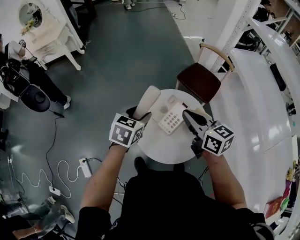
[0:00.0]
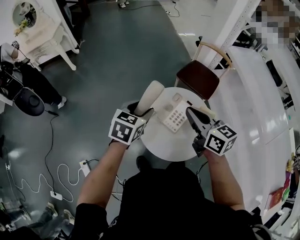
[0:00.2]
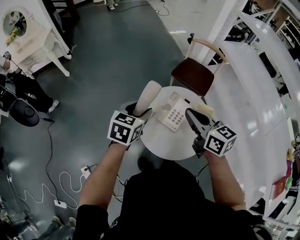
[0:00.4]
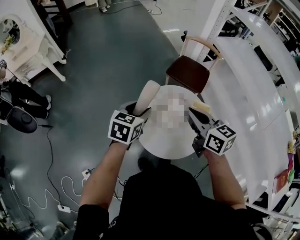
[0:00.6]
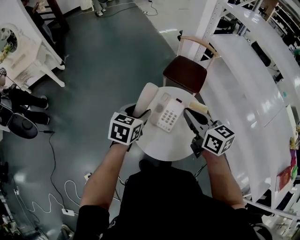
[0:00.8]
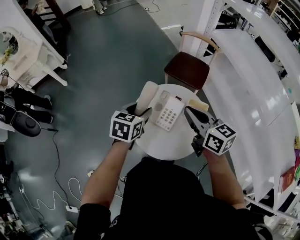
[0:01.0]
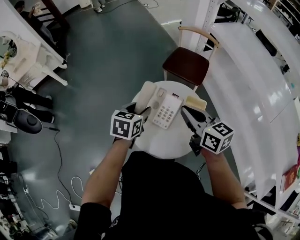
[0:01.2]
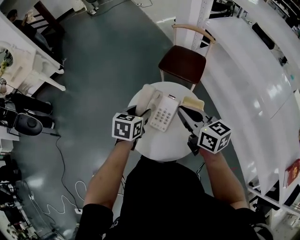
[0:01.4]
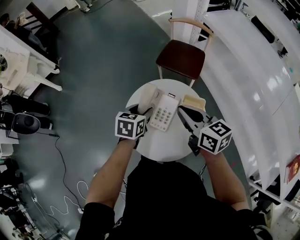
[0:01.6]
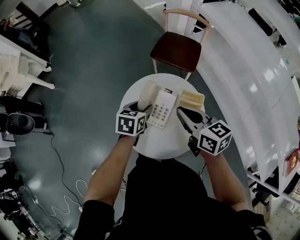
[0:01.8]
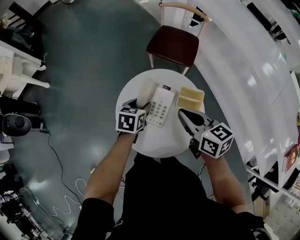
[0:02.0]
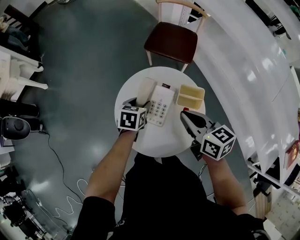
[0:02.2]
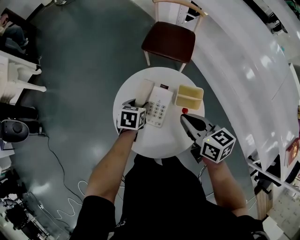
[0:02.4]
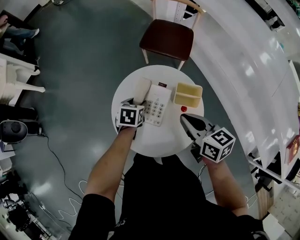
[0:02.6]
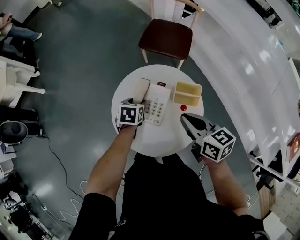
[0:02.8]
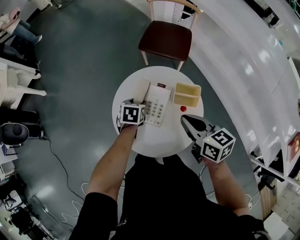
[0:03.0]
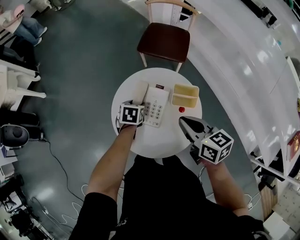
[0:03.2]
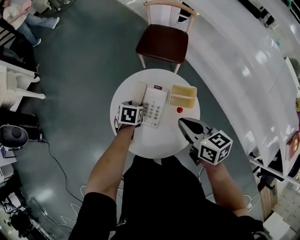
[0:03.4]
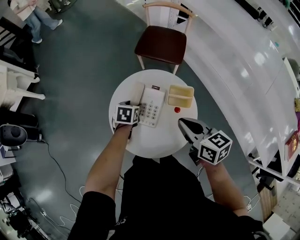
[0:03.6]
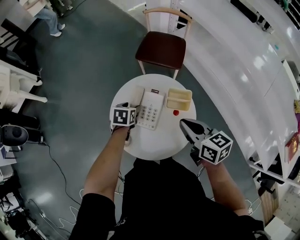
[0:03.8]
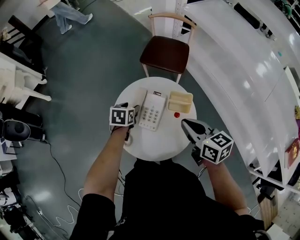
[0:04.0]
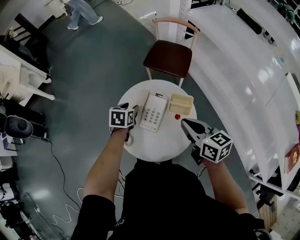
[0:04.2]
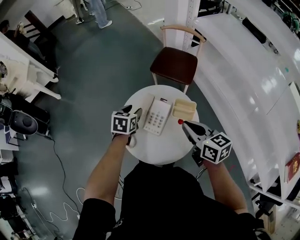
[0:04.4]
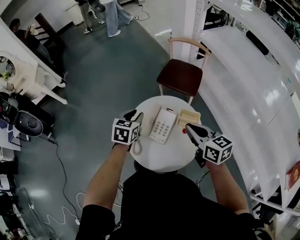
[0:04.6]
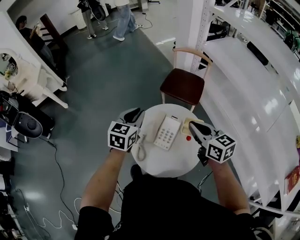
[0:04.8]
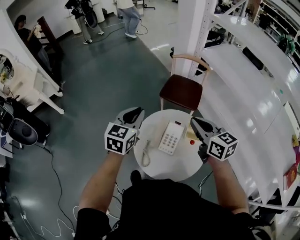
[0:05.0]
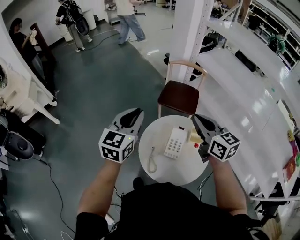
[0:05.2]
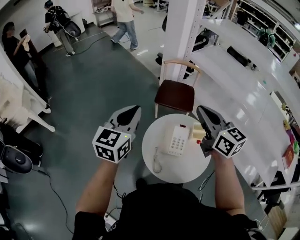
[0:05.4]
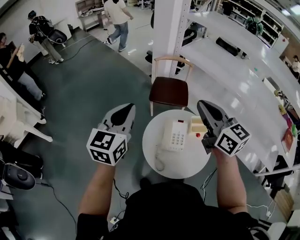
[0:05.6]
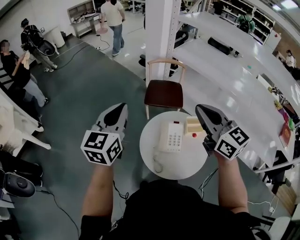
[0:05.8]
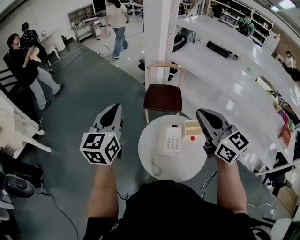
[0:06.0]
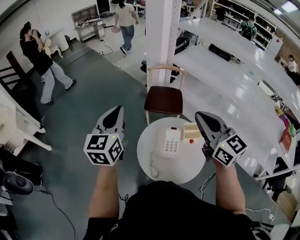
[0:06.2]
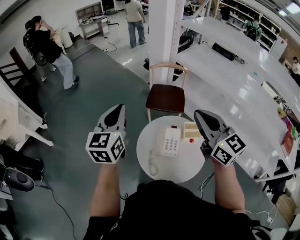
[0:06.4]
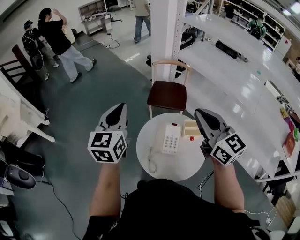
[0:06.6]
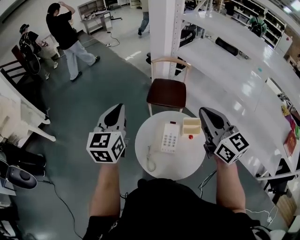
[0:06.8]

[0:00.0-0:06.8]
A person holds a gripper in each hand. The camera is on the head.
0:00.0 to 0:01.4: The left gripper goes about 10 cm to the right, downward and forward; the right gripper moves to the right, approximately 5 cm.
0:01.4 to 0:02.8: The right gripper heads downward, covering about 10 cm. Meanwhile the left gripper goes about 15 cm downward.
0:02.8 to 0:04.0: The right gripper shifts by roughly 5 cm.
0:04.0 to 0:05.4: The right gripper goes about 25 cm upward, to the left and forward, and rotates approximately 30 degrees. The left gripper moves upward, roughly 35 cm, tips its fingers upward by about 50 degrees, and closes.
0:05.4 to 0:06.8: The right gripper is displaced to the right by about 5 cm.

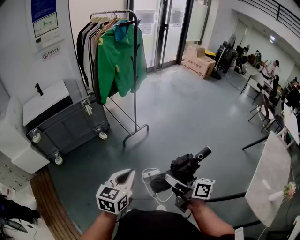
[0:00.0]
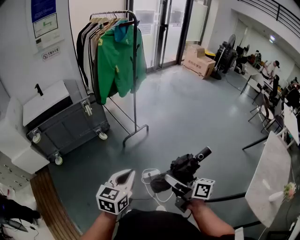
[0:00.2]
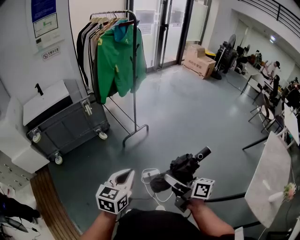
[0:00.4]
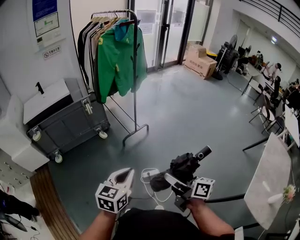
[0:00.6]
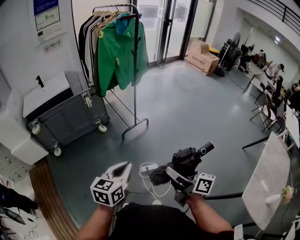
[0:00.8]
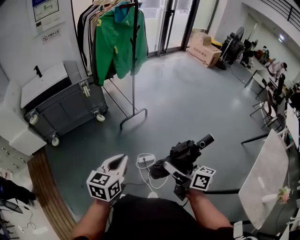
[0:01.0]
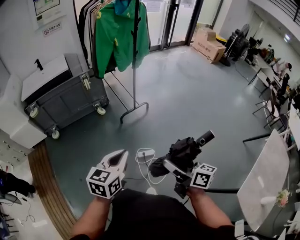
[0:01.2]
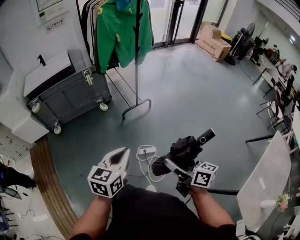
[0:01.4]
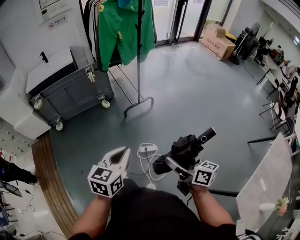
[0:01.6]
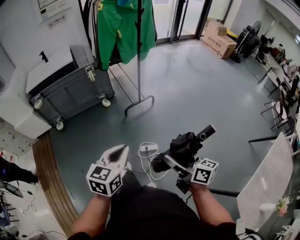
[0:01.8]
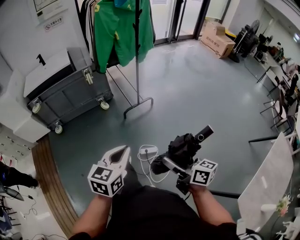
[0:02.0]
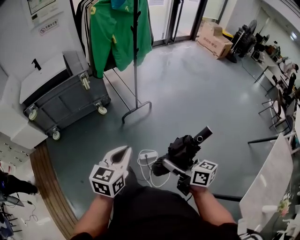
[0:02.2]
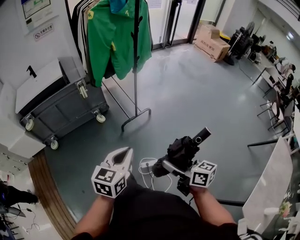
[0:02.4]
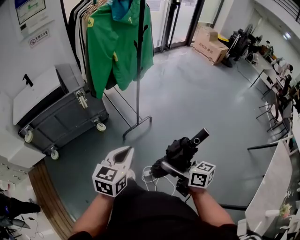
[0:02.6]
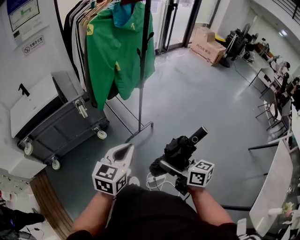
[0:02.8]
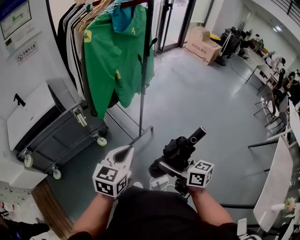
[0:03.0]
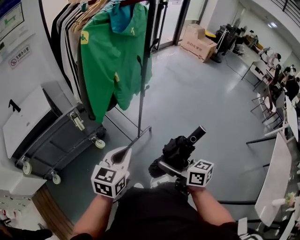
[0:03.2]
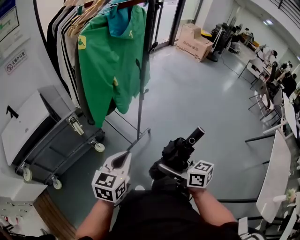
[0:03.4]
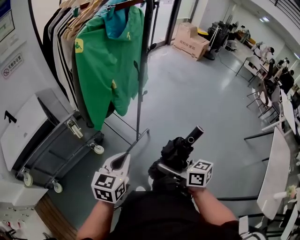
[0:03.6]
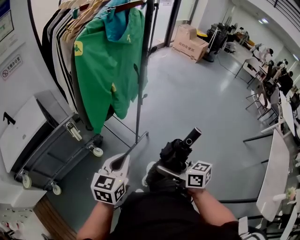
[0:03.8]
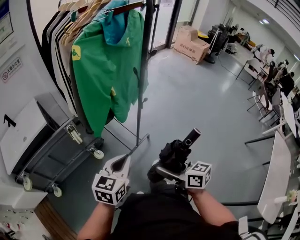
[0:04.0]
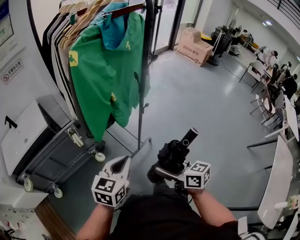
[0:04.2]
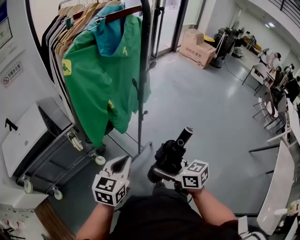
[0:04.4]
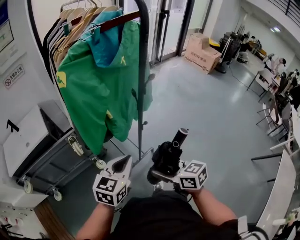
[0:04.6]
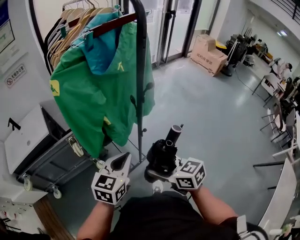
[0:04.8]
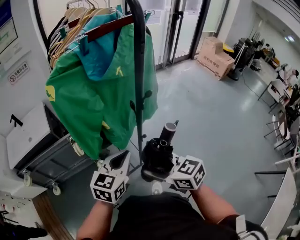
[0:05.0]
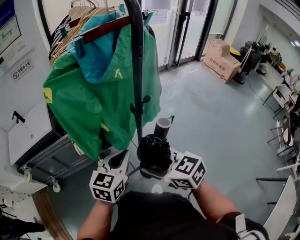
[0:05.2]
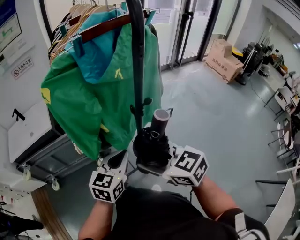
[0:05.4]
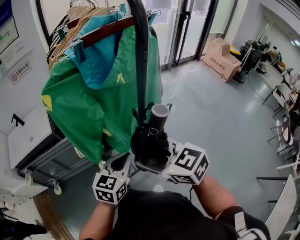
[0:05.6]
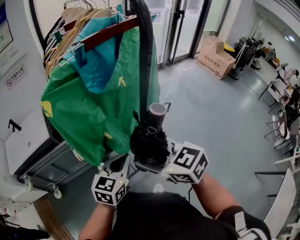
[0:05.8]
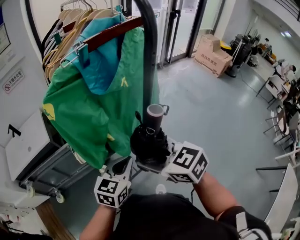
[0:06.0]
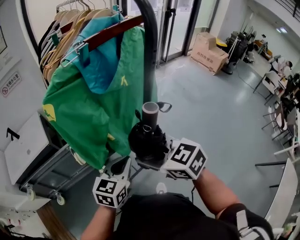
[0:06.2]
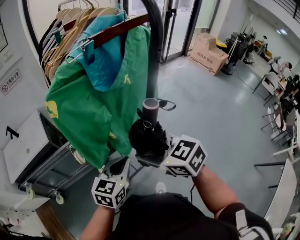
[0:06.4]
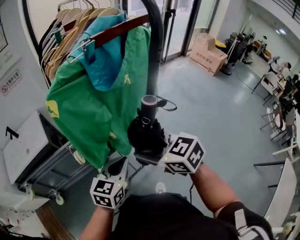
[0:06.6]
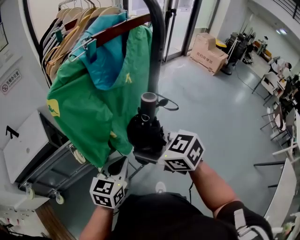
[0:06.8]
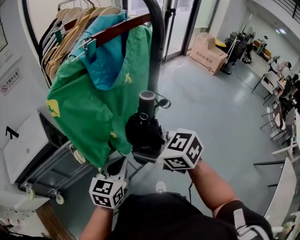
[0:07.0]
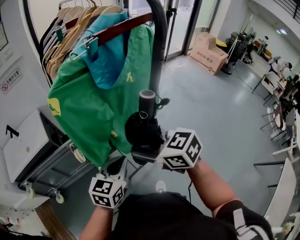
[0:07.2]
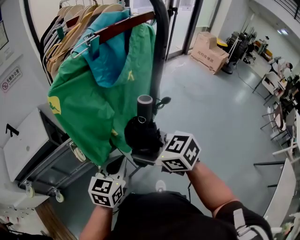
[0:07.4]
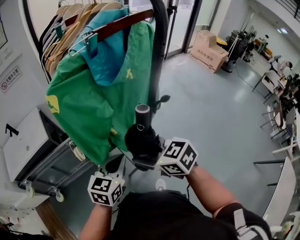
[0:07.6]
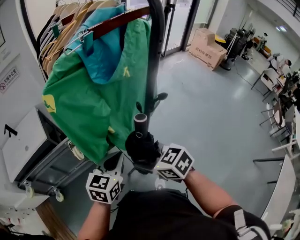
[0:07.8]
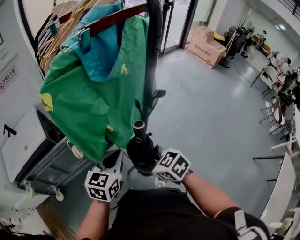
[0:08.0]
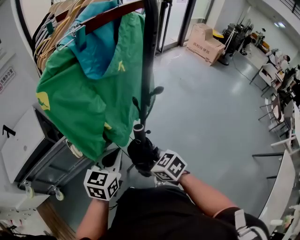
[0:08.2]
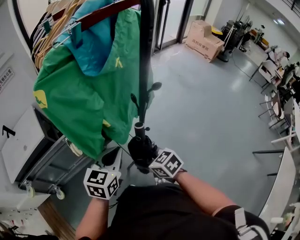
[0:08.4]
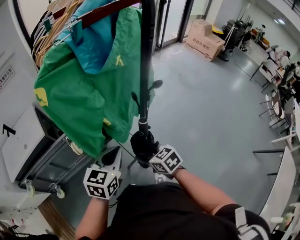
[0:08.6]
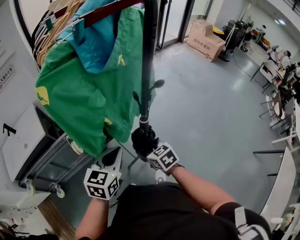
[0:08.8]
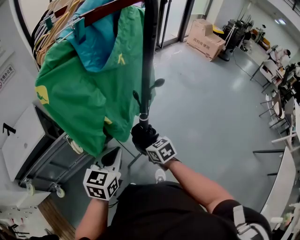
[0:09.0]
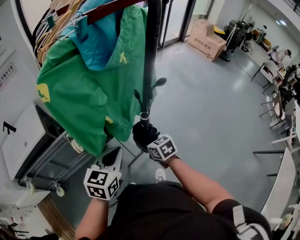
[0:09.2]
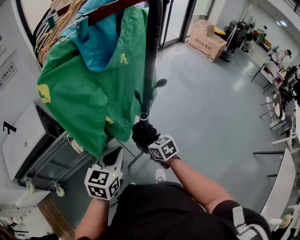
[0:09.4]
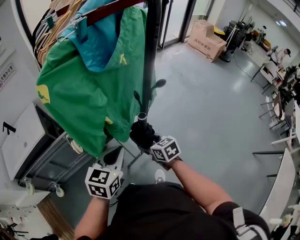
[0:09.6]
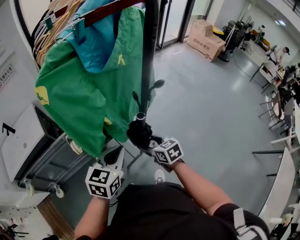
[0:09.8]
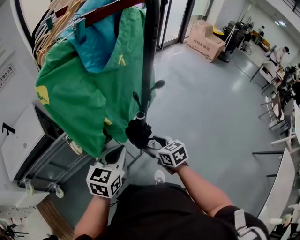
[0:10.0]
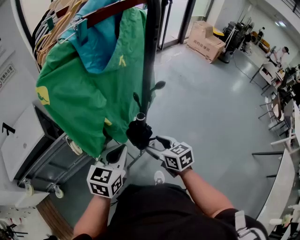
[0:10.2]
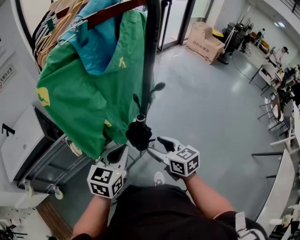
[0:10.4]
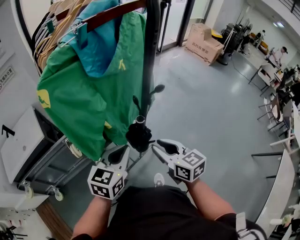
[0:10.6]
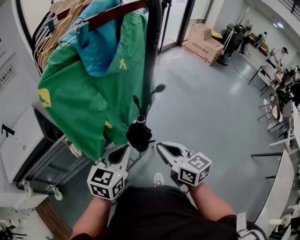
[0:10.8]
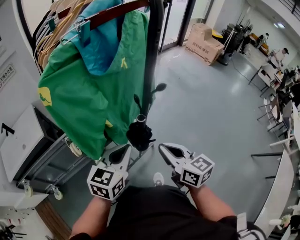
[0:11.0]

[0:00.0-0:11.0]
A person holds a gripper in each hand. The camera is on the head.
0:00.0 to 0:01.6: Both grippers move to the right, roughly 10 cm.
0:01.6 to 0:03.2: Both grippers are carried forward, approximately 50 cm.
0:03.2 to 0:04.8: Both grippers travel together forward, approximately 20 cm. The right gripper swivels some 20 degrees.
0:04.8 to 0:06.2: The left gripper is displaced forward by about 5 cm, while the right gripper is displaced forward and upward by approximately 15 cm.
0:06.2 to 0:07.8: The right gripper travels downward by roughly 10 cm.
0:07.8 to 0:09.4: The right gripper moves downward and forward, approximately 15 cm, and rotates some 20 degrees.
0:09.4 to 0:11.0: The right gripper is displaced upward and backward by about 20 cm, changes its angle by approximately 30 degrees, and closes. Meanwhile the left gripper moves approximately 5 cm.

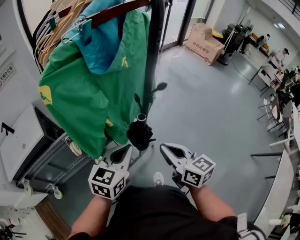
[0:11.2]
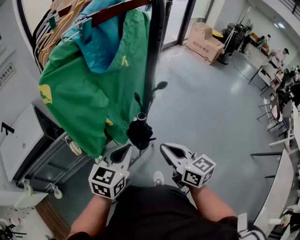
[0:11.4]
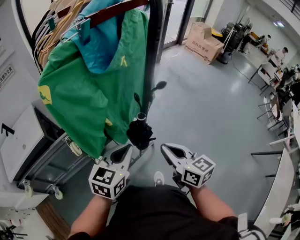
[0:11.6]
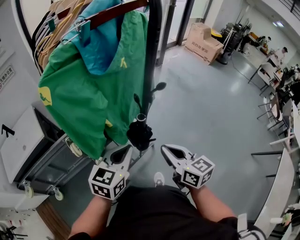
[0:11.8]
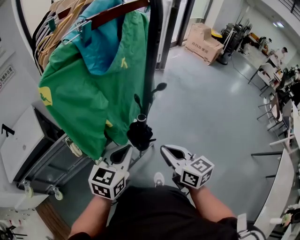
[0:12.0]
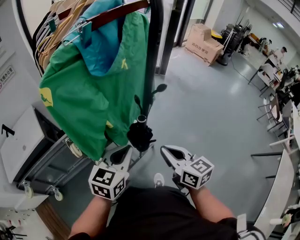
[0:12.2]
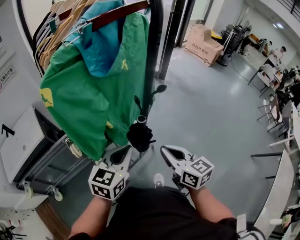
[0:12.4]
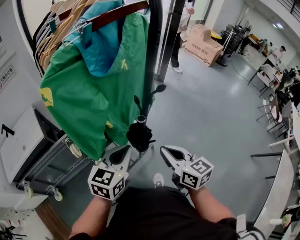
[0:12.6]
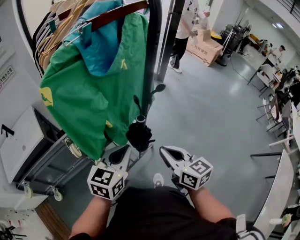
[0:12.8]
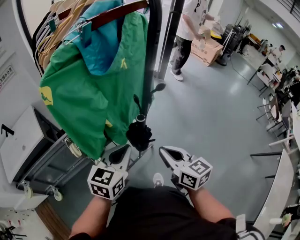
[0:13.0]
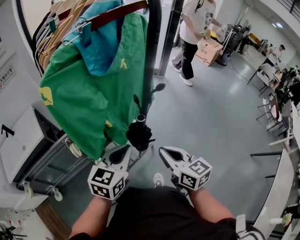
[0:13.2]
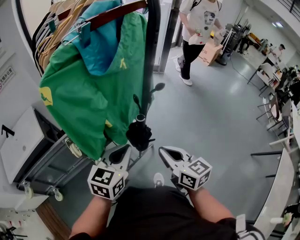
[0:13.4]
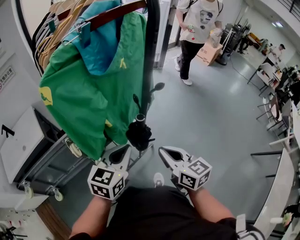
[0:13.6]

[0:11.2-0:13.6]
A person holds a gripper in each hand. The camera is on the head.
0:11.2 to 0:12.4: Neither gripper changes place.
0:12.4 to 0:13.6: Both grippers stay about where they are.

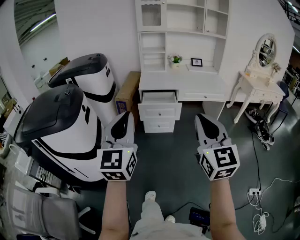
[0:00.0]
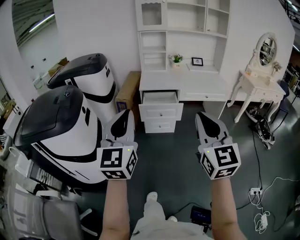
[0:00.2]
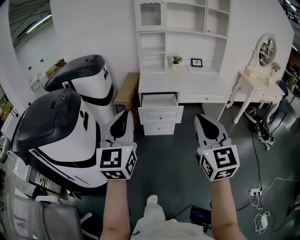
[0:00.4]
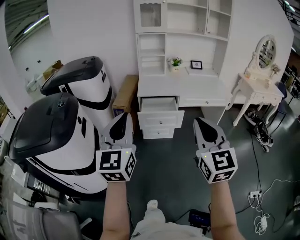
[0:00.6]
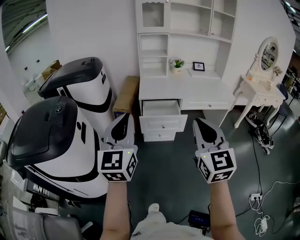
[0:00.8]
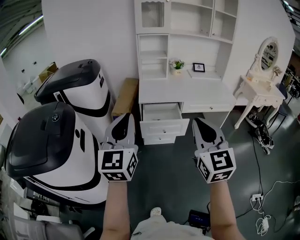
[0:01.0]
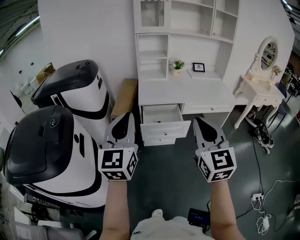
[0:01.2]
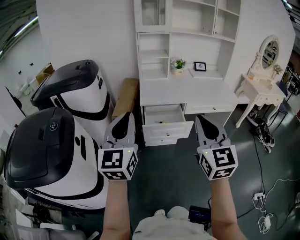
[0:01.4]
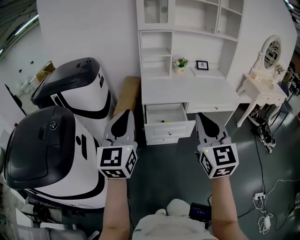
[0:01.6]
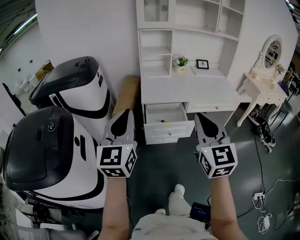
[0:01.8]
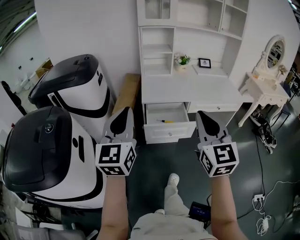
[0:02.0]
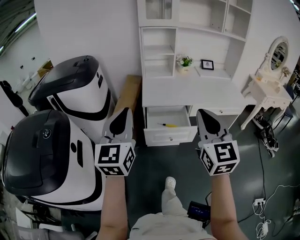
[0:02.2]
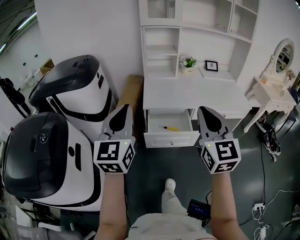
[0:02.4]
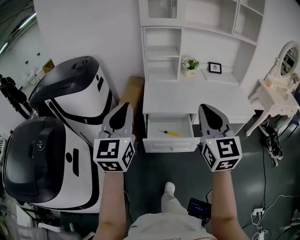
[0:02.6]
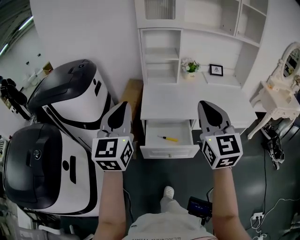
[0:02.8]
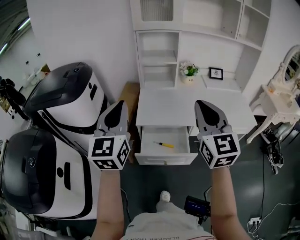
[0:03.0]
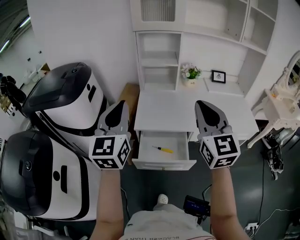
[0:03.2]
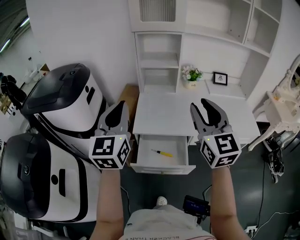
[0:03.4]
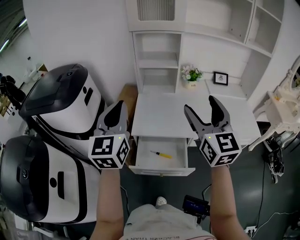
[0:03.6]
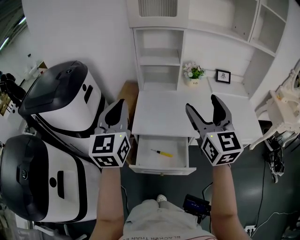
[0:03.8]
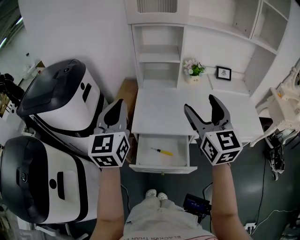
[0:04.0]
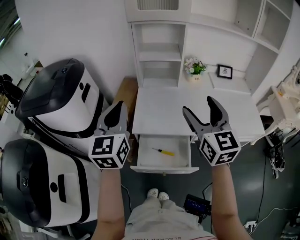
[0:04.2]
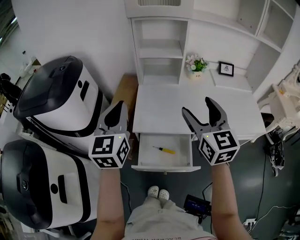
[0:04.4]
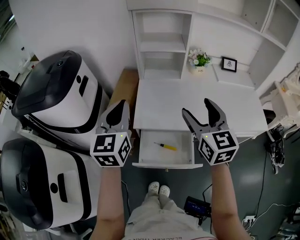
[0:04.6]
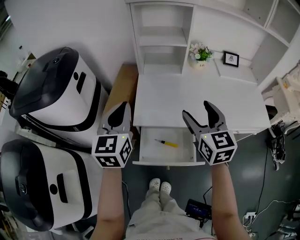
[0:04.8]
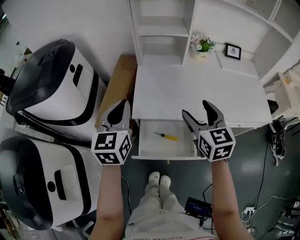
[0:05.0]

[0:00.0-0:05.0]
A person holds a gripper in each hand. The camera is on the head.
0:00.0 to 0:01.6: The two grippers go some 25 cm forward.
0:01.6 to 0:03.4: Both grippers move forward, some 35 cm.
0:03.4 to 0:05.0: Both grippers move downward and forward, approximately 20 cm. The right gripper turns by approximately 20 degrees, and opens its fingers.
